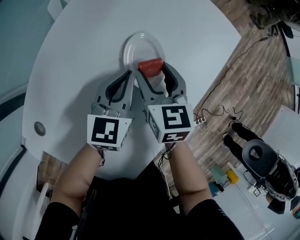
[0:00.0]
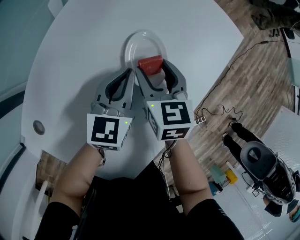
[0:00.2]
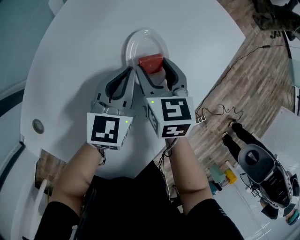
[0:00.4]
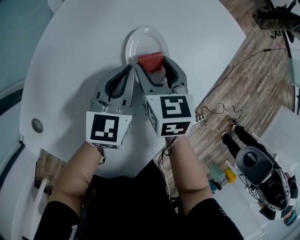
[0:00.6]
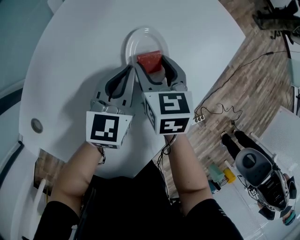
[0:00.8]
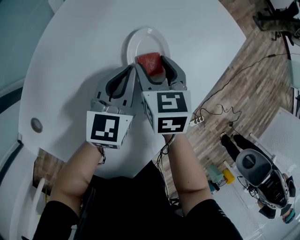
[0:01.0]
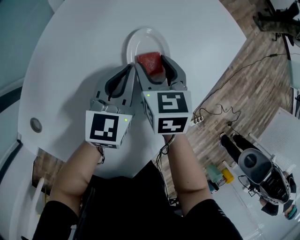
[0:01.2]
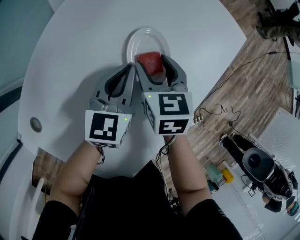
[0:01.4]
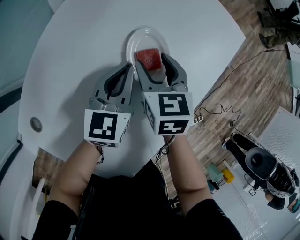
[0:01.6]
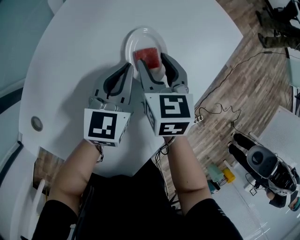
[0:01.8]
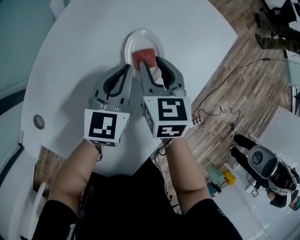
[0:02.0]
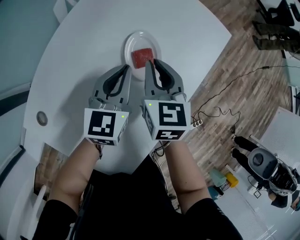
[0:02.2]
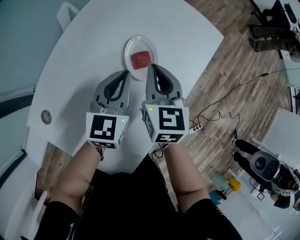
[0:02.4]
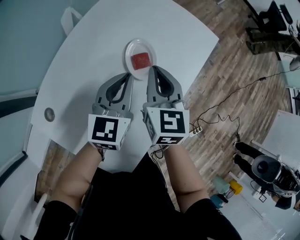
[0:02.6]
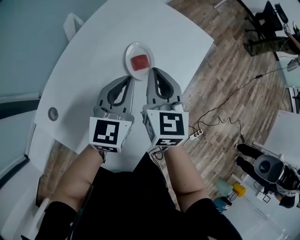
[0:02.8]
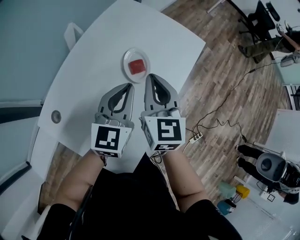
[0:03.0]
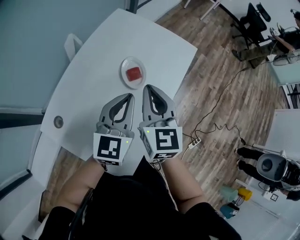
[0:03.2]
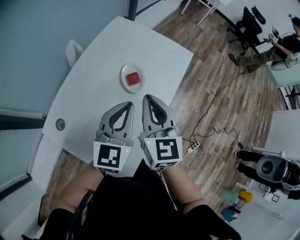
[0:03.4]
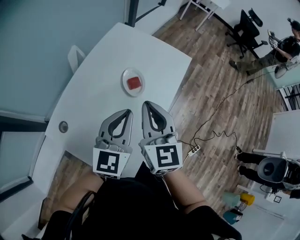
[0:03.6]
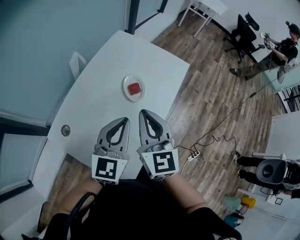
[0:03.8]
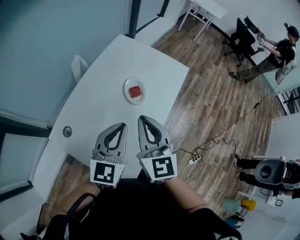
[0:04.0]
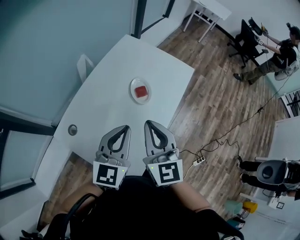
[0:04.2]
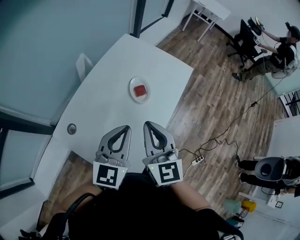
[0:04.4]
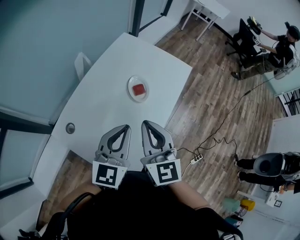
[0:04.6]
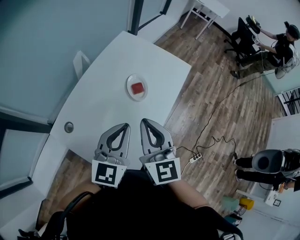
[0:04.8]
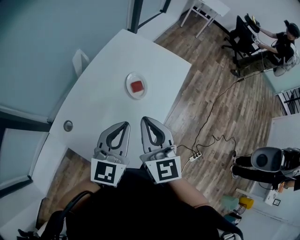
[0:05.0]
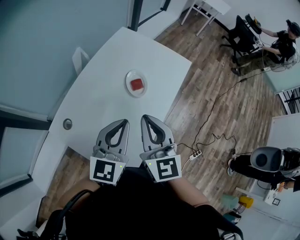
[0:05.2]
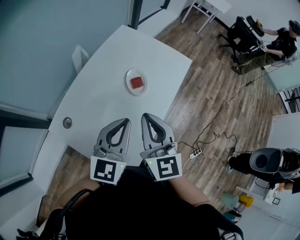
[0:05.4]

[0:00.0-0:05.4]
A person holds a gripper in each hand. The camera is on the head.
0:00.0 to 0:01.4: The grippers move only a little.
0:01.4 to 0:02.8: The right gripper is displaced upward by some 15 cm, turns by about 30 degrees, and closes; the left gripper is displaced upward and backward by approximately 15 cm.
0:02.8 to 0:04.0: Both grippers travel together backward and upward, approximately 15 cm.
0:04.0 to 0:05.4: The grippers move only a little.

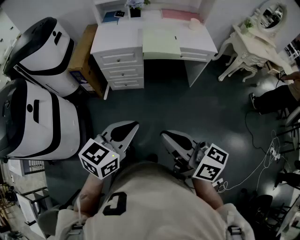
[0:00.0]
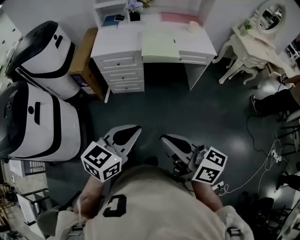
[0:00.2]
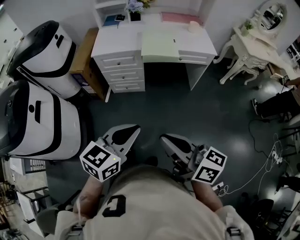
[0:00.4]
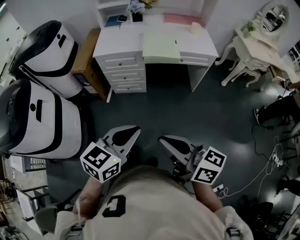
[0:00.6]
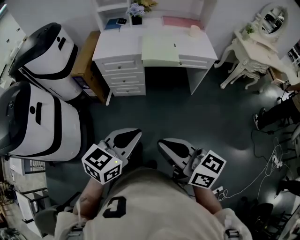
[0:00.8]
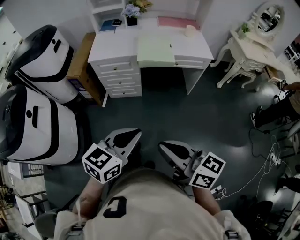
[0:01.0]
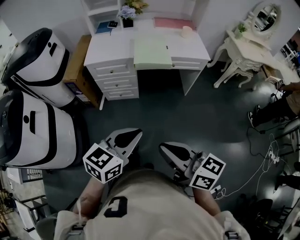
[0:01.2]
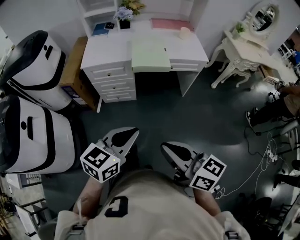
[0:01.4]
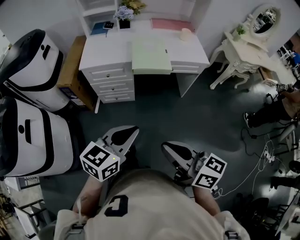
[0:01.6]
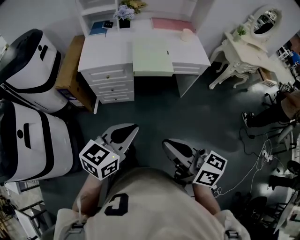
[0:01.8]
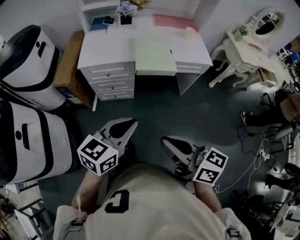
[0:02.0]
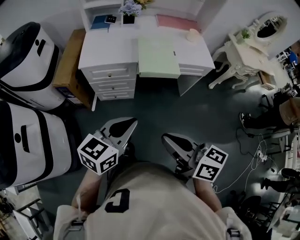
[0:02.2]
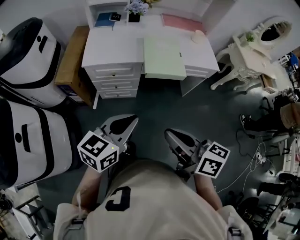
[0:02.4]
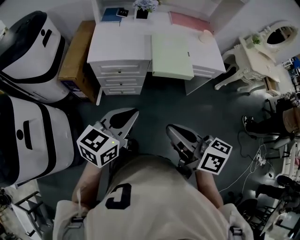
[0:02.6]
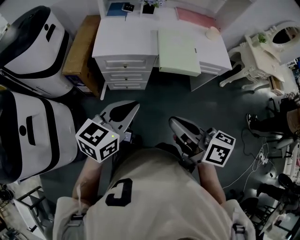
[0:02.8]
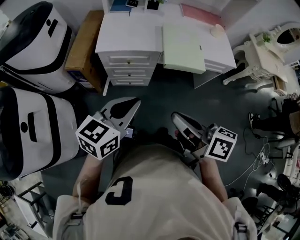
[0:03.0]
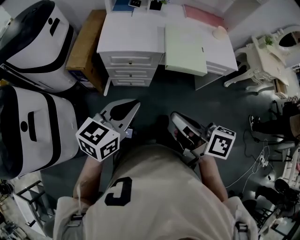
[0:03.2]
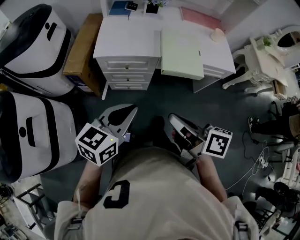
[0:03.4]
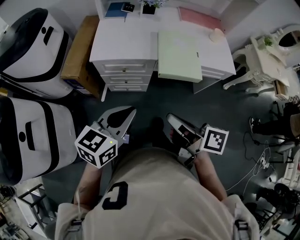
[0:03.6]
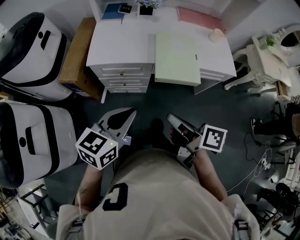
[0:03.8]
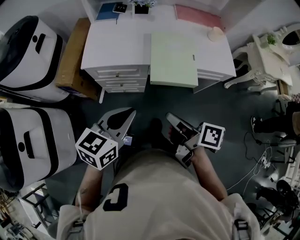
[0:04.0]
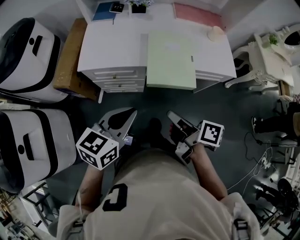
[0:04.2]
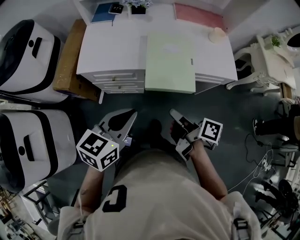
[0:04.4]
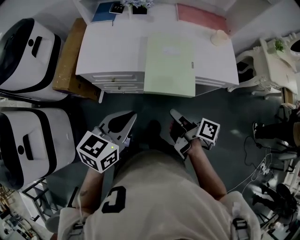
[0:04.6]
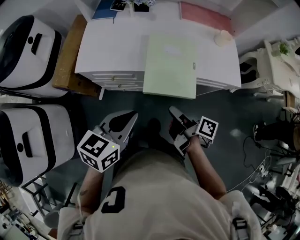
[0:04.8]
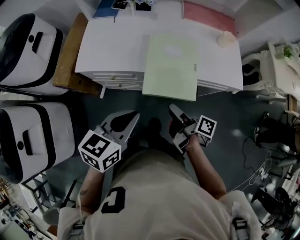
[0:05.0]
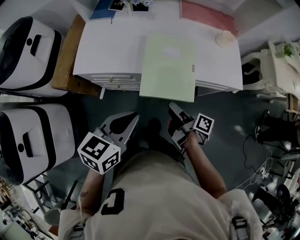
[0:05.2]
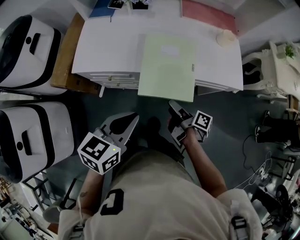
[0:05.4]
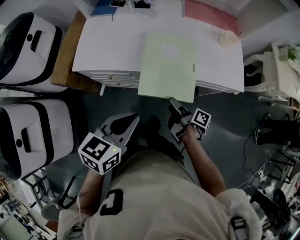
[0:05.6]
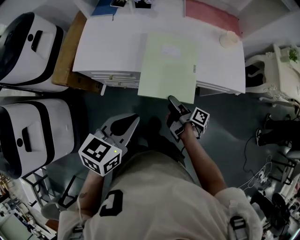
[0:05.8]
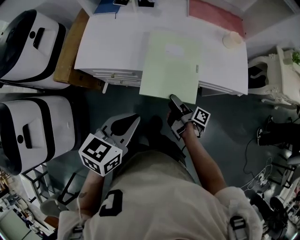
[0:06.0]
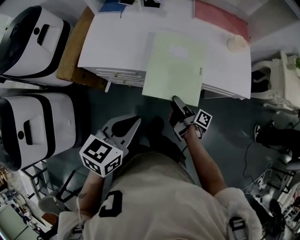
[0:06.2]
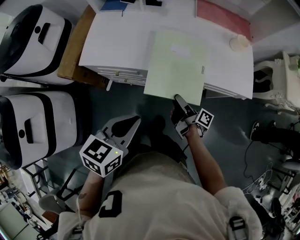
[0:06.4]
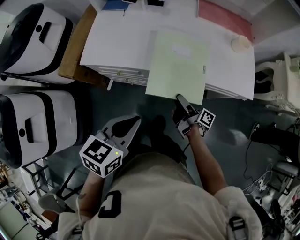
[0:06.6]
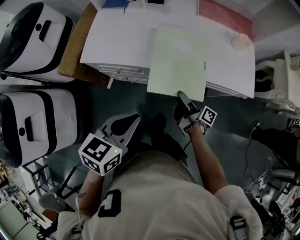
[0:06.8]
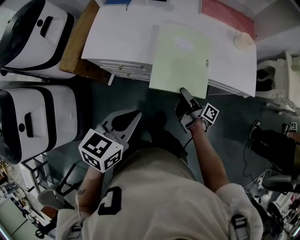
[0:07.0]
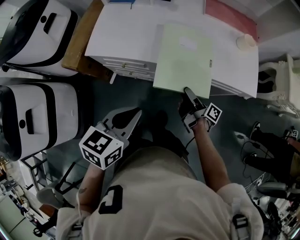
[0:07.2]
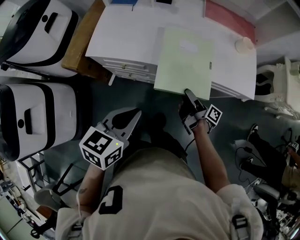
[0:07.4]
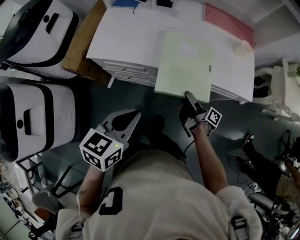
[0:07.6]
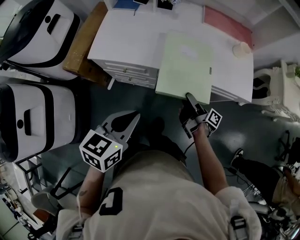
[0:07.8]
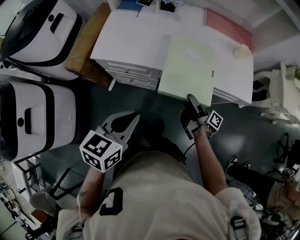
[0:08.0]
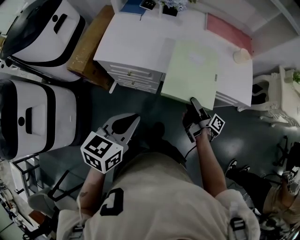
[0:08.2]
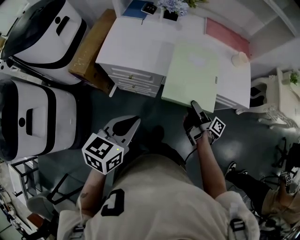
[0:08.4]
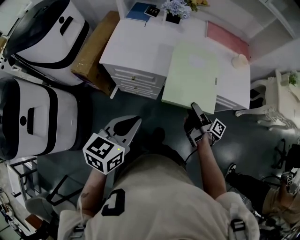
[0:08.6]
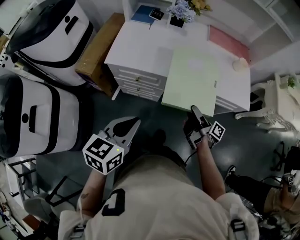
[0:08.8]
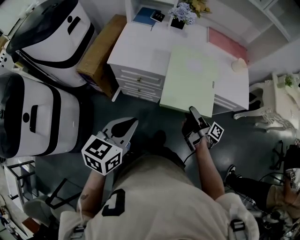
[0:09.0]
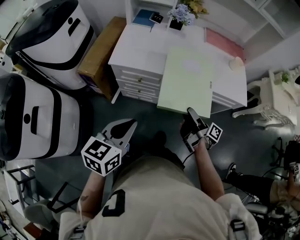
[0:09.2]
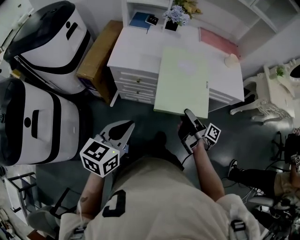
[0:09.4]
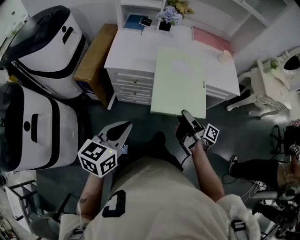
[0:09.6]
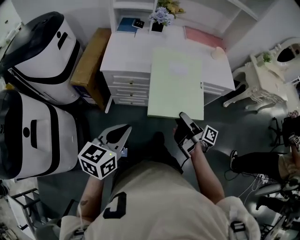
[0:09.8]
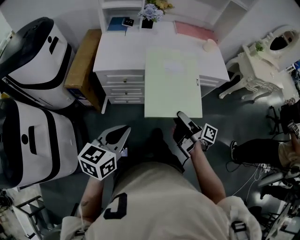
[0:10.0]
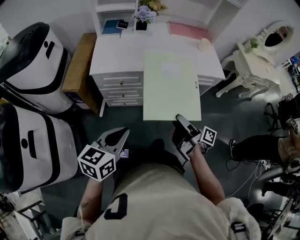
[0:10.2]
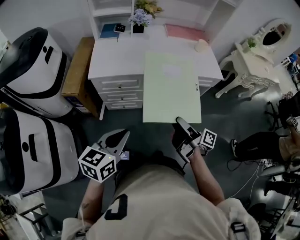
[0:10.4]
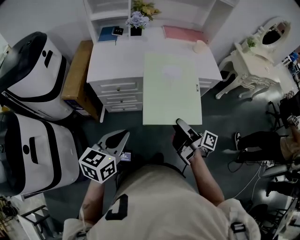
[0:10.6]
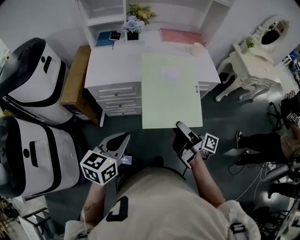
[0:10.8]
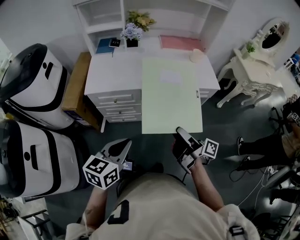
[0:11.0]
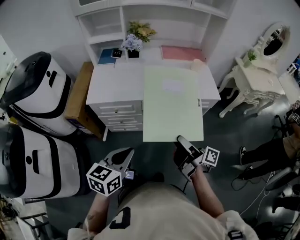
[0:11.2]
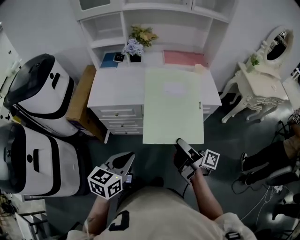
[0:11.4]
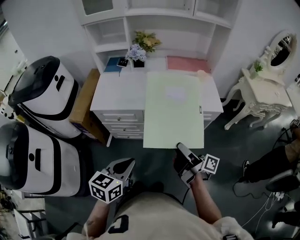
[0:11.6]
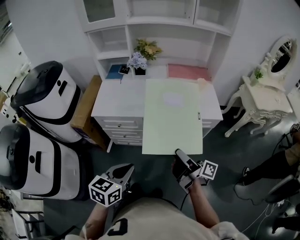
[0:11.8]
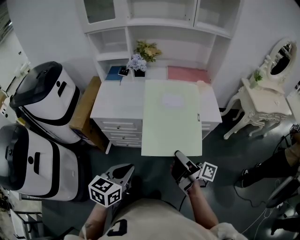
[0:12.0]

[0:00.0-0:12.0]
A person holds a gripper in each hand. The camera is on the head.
0:00.0 to 0:01.6: Both grippers move forward, about 5 cm.
0:01.6 to 0:03.0: The left gripper heads to the left and forward, covering roughly 20 cm. The right gripper travels forward and to the left by roughly 20 cm.
0:03.0 to 0:04.4: The left gripper moves forward and to the right, some 15 cm. Meanwhile the right gripper heads forward, to the right and downward, covering some 25 cm, and rotates about 30 degrees.
0:04.4 to 0:06.0: The left gripper moves to the right, approximately 5 cm. Meanwhile the right gripper is displaced downward and forward by approximately 20 cm, and opens up.
0:06.0 to 0:07.6: The grippers make only small movements.
0:07.6 to 0:09.0: The left gripper shifts roughly 10 cm to the left and backward. Meanwhile the right gripper is displaced upward, backward and to the left by some 10 cm.
0:09.0 to 0:10.4: The right gripper goes about 15 cm backward and upward. Meanwhile the left gripper travels backward by approximately 5 cm.
0:10.4 to 0:12.0: The right gripper moves to the right and upward, about 10 cm; the left gripper goes approximately 15 cm to the right.

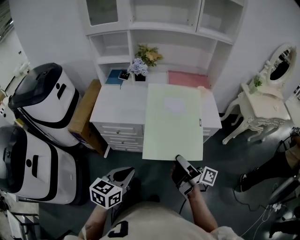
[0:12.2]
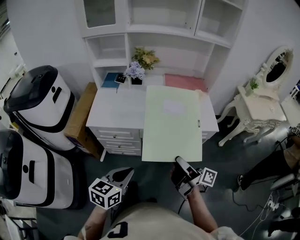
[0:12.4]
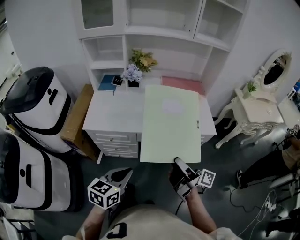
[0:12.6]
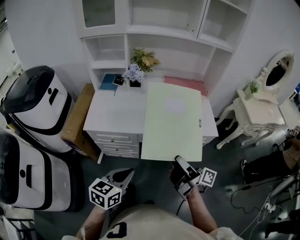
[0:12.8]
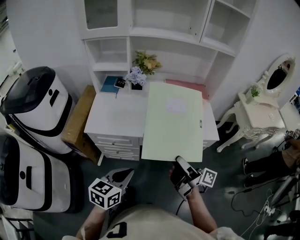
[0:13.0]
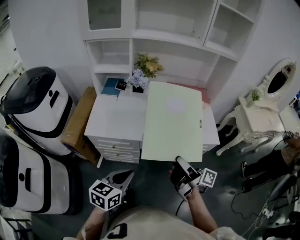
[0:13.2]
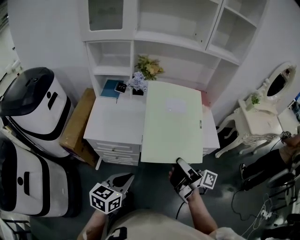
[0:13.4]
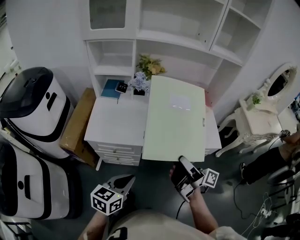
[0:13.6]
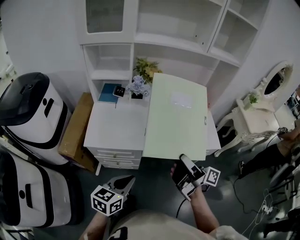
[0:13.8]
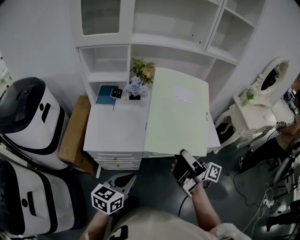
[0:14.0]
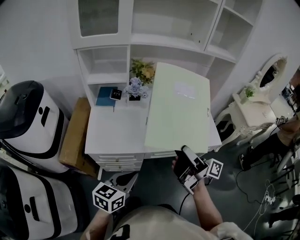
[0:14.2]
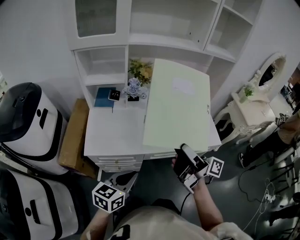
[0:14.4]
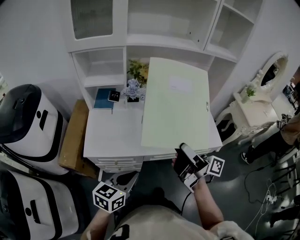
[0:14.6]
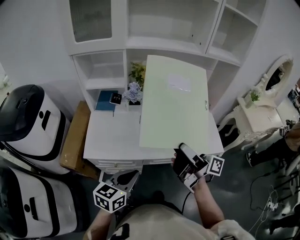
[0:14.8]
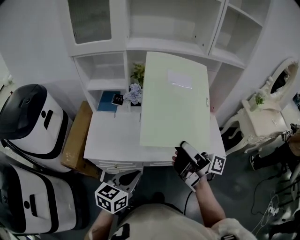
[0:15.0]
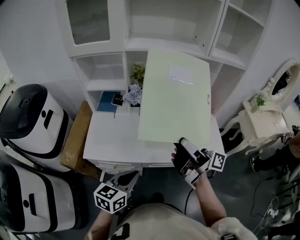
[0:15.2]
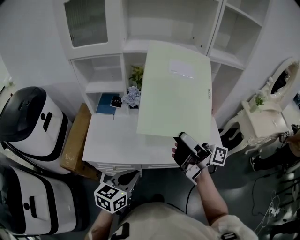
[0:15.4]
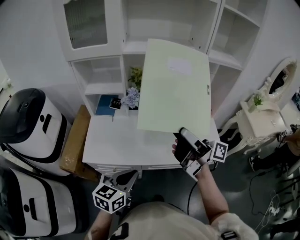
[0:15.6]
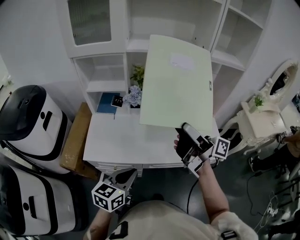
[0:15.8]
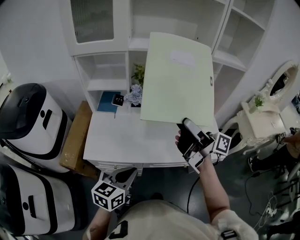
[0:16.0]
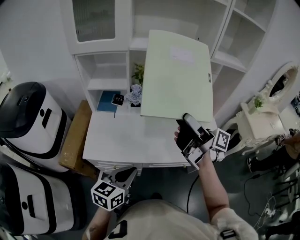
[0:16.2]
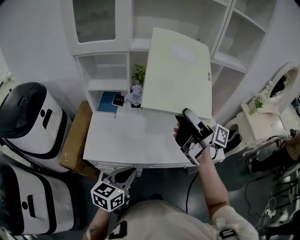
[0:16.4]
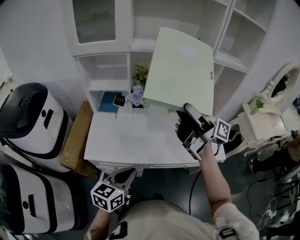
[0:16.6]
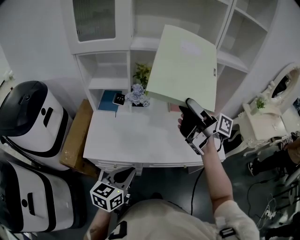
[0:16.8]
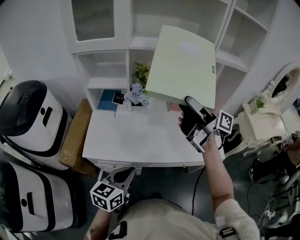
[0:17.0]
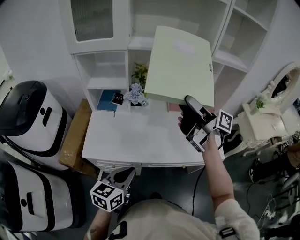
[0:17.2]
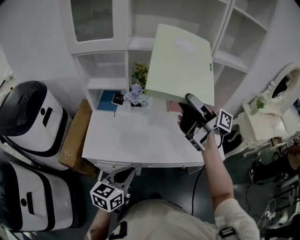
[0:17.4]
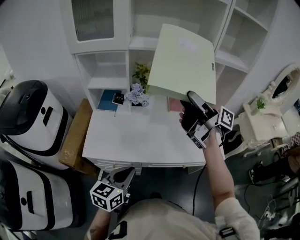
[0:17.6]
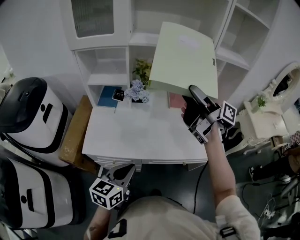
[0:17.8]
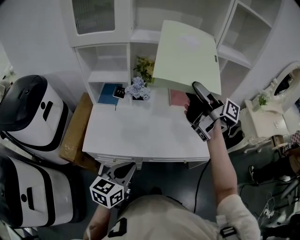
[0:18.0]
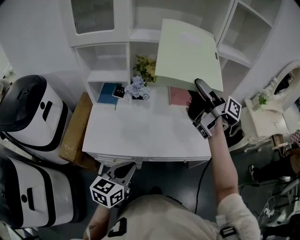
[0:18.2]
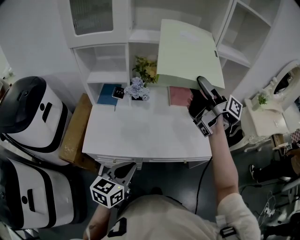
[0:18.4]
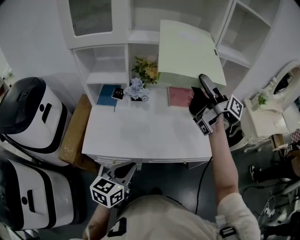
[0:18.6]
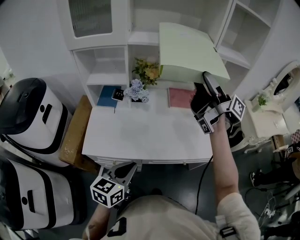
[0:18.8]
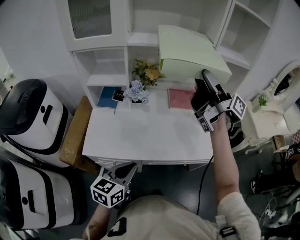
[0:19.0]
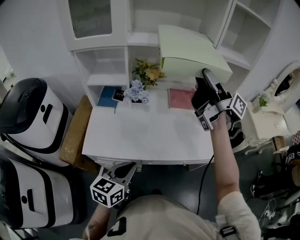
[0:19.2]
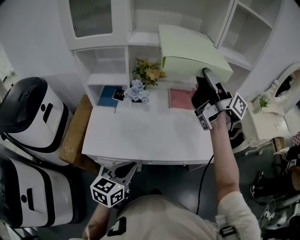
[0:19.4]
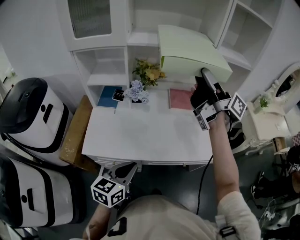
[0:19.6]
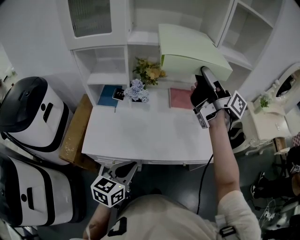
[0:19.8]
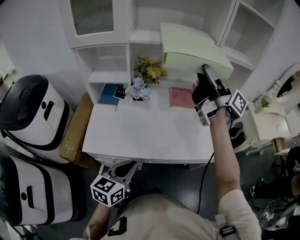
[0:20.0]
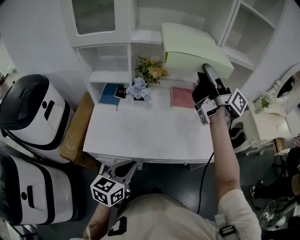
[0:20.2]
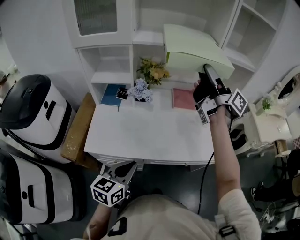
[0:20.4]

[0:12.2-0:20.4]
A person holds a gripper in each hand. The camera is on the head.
0:12.2 to 0:13.8: The right gripper goes approximately 15 cm forward and upward. Meanwhile the left gripper is displaced forward and to the left by roughly 15 cm.
0:13.8 to 0:15.4: The left gripper heads forward, covering roughly 10 cm; the right gripper moves forward and upward, approximately 15 cm.
0:15.4 to 0:17.2: The right gripper moves forward, about 10 cm.
0:17.2 to 0:18.8: The right gripper travels upward by about 5 cm.
0:18.8 to 0:20.4: The grippers move only a little.
